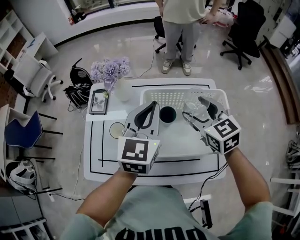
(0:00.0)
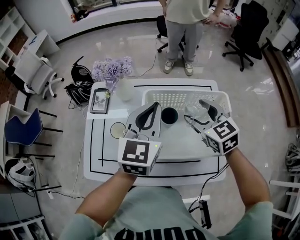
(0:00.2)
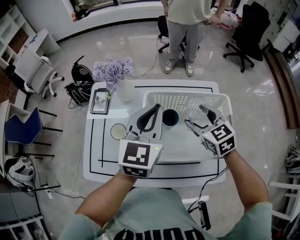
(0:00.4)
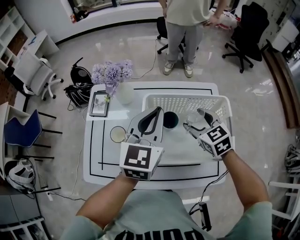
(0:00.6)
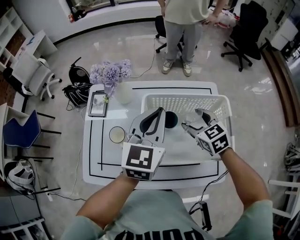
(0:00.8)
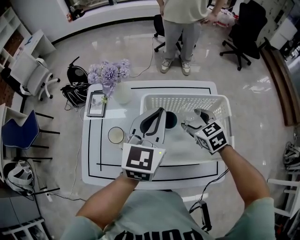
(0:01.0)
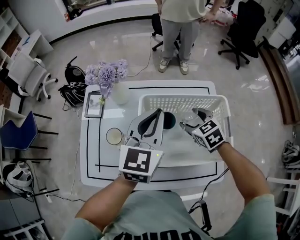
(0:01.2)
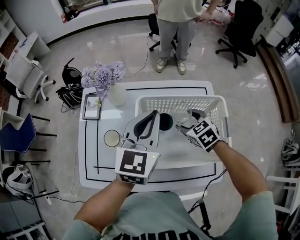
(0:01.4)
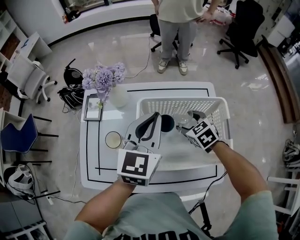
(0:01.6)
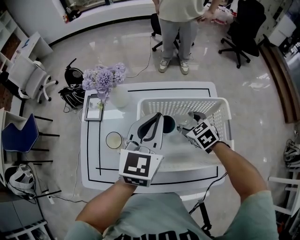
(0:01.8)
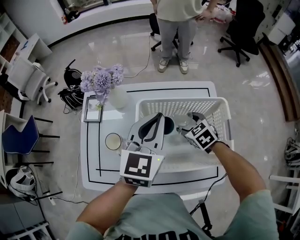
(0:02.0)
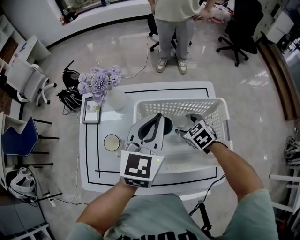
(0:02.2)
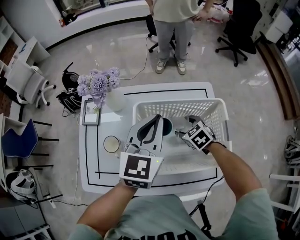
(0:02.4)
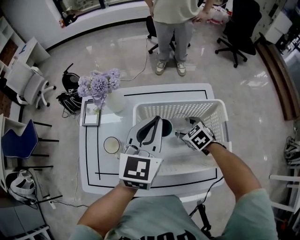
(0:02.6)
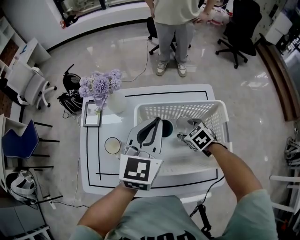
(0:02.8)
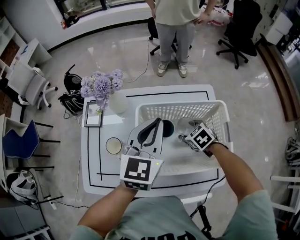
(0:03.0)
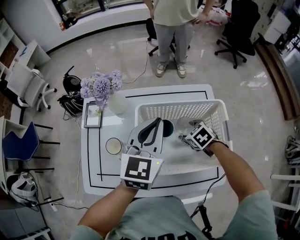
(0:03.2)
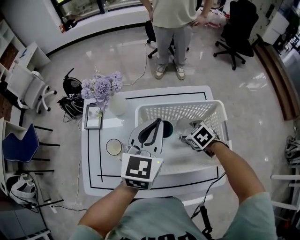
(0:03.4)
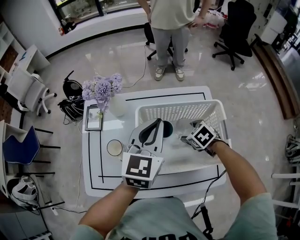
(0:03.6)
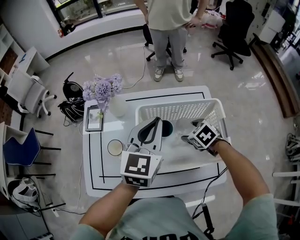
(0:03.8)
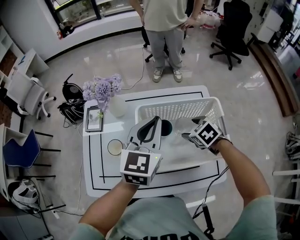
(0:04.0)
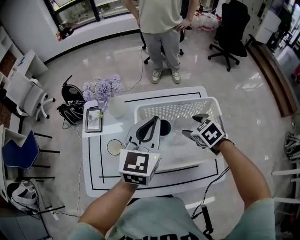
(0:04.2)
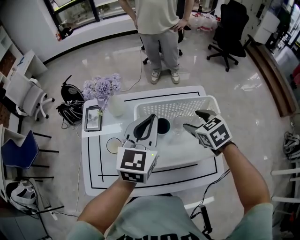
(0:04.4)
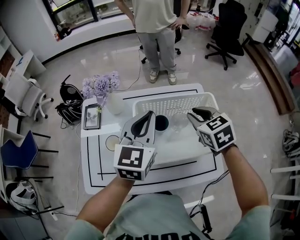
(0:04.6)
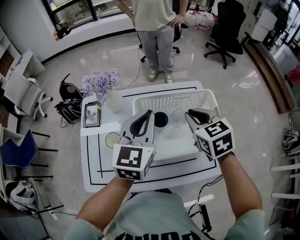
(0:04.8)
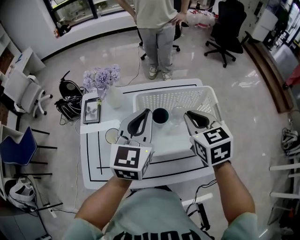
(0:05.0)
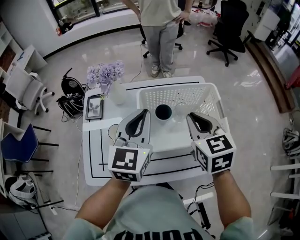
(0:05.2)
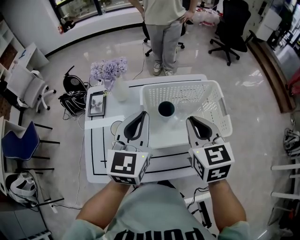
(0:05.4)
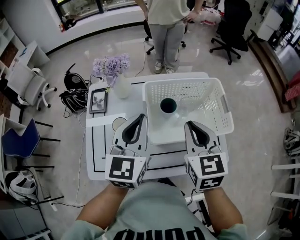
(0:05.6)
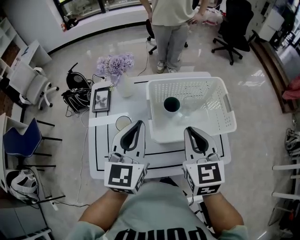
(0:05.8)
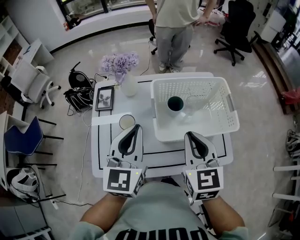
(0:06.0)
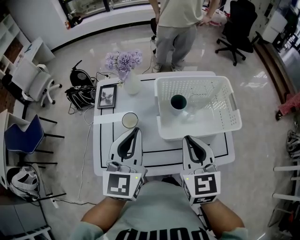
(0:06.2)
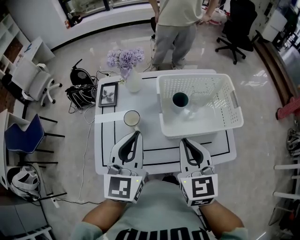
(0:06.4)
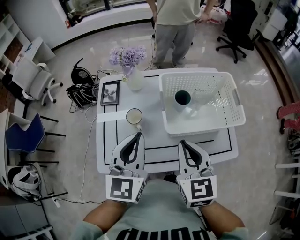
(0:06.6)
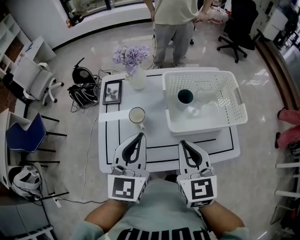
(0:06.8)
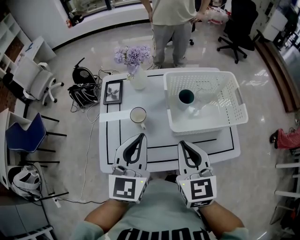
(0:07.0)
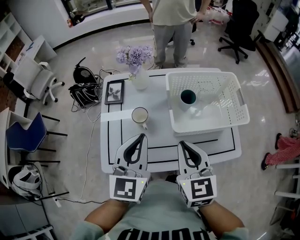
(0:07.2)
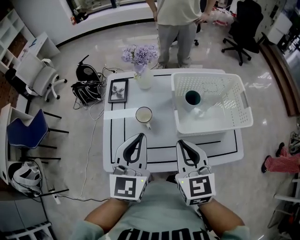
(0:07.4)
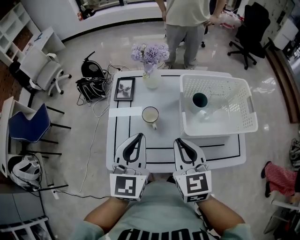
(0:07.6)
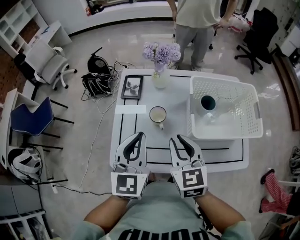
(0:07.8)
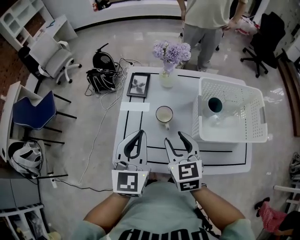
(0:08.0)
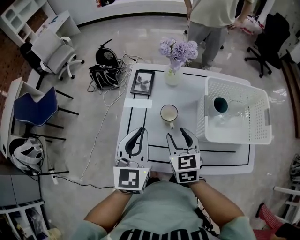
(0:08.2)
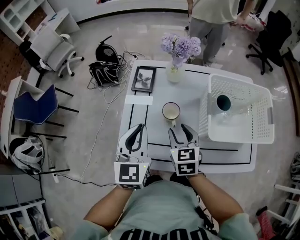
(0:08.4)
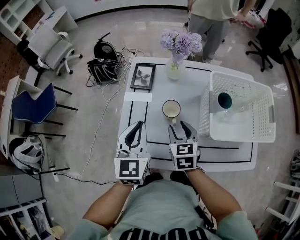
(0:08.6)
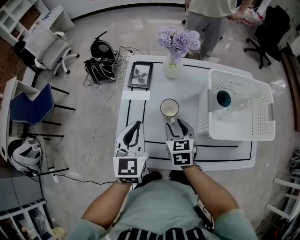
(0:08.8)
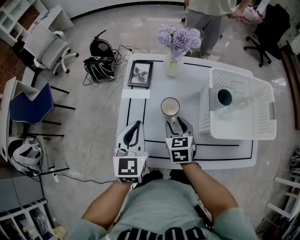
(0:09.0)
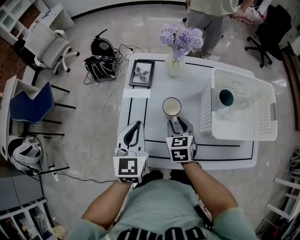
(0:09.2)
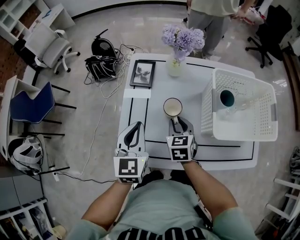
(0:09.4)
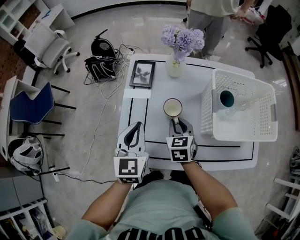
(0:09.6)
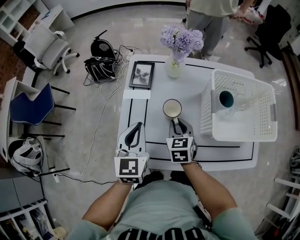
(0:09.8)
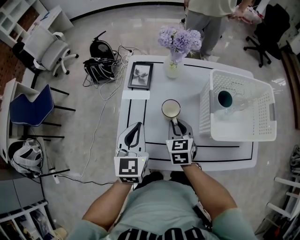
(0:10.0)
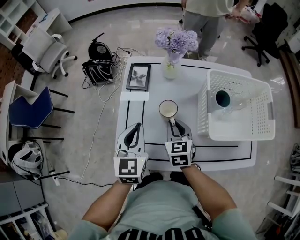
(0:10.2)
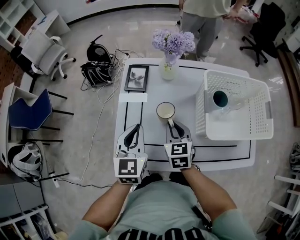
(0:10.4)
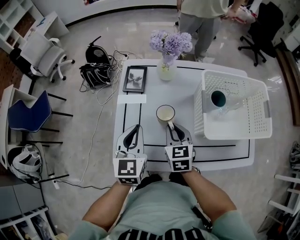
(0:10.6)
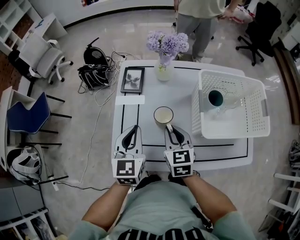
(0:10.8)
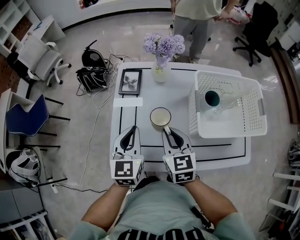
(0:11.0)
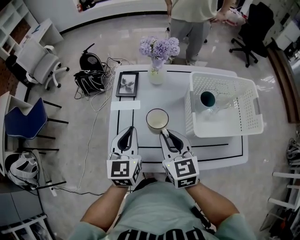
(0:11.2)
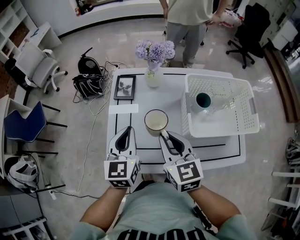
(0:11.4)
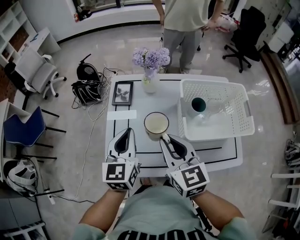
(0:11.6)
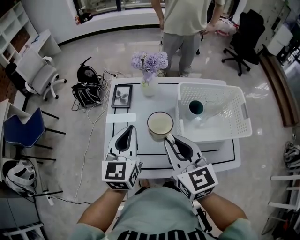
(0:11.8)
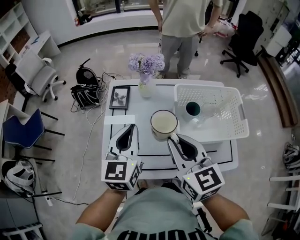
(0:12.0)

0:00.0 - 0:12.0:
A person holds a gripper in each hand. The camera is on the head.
0:00.0 - 0:01.6: The right gripper is displaced downward by approximately 15 cm, and swivels approximately 30 degrees.
0:01.6 - 0:03.0: The right gripper heads downward, covering roughly 5 cm.
0:03.0 - 0:04.4: The right gripper moves upward, roughly 15 cm.
0:04.4 - 0:06.0: The left gripper heads backward and to the left, covering approximately 15 cm. The right gripper travels backward, to the left and upward by about 25 cm, rotates roughly 30 degrees, and closes.
0:06.0 - 0:07.6: The two grippers go approximately 10 cm to the left.
0:07.6 - 0:09.0: The right gripper is displaced downward and forward by approximately 20 cm, and opens up. The left gripper goes some 15 cm downward, to the left and forward.
0:09.0 - 0:10.4: The grippers make only small movements.
0:10.4 - 0:12.0: The right gripper heads upward, covering approximately 20 cm, and rotates approximately 20 degrees, while the left gripper is displaced upward and to the right by some 15 cm.

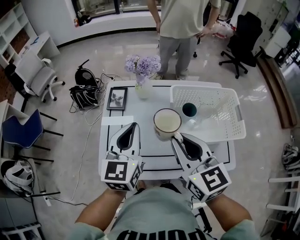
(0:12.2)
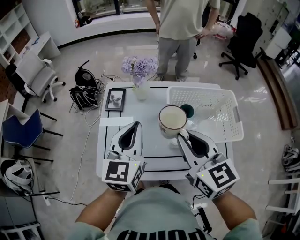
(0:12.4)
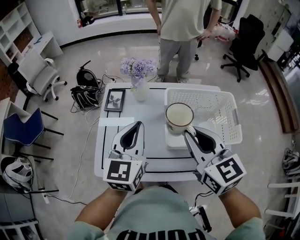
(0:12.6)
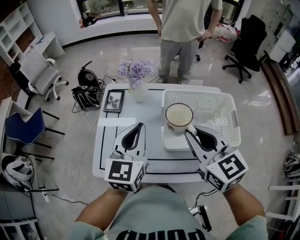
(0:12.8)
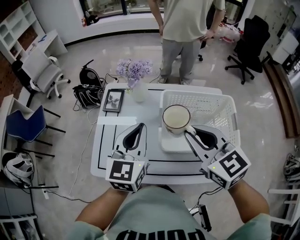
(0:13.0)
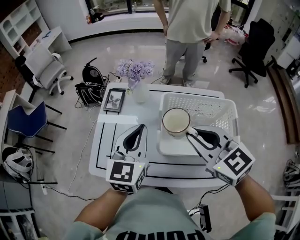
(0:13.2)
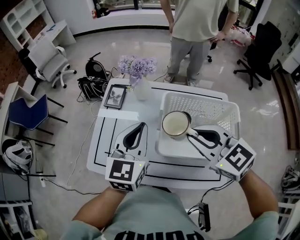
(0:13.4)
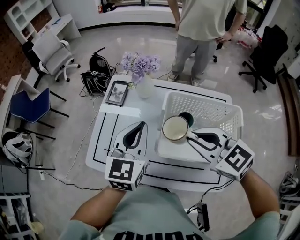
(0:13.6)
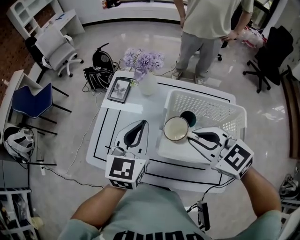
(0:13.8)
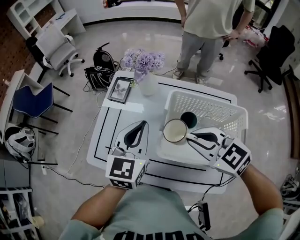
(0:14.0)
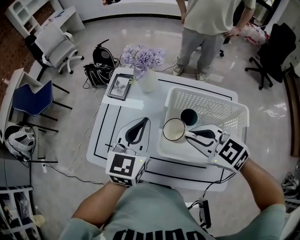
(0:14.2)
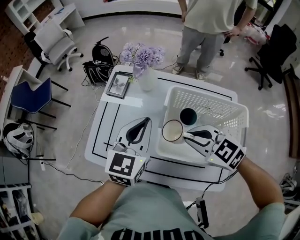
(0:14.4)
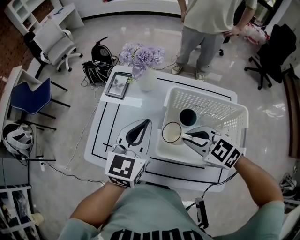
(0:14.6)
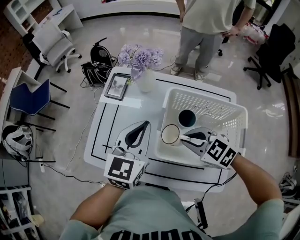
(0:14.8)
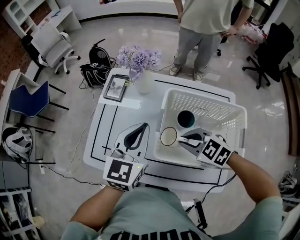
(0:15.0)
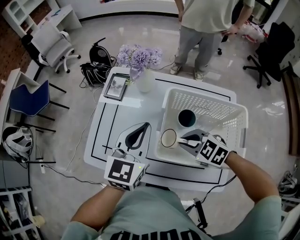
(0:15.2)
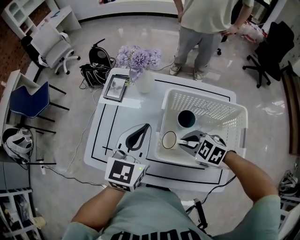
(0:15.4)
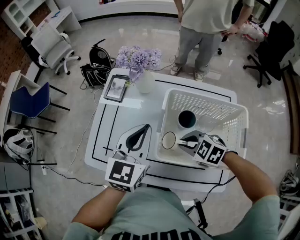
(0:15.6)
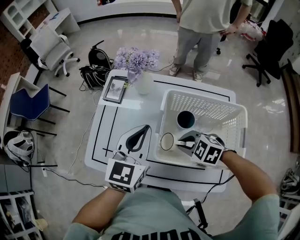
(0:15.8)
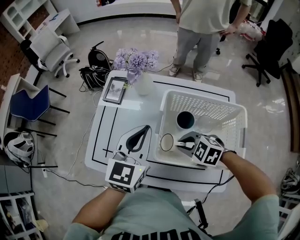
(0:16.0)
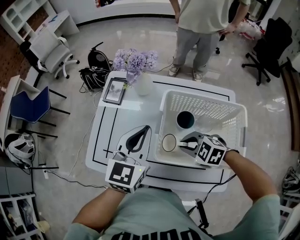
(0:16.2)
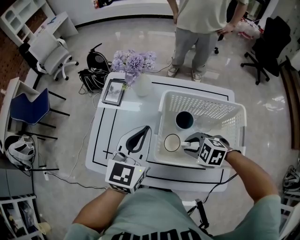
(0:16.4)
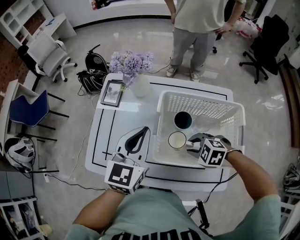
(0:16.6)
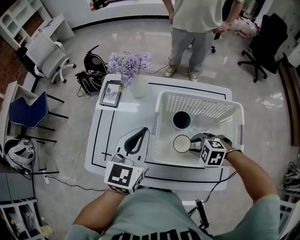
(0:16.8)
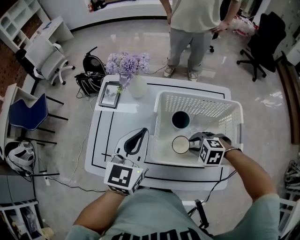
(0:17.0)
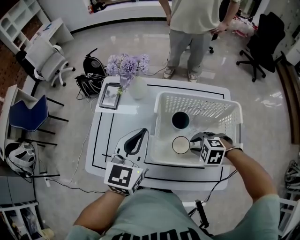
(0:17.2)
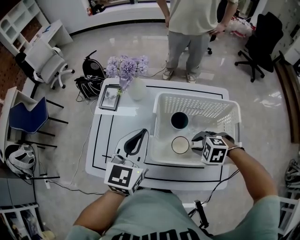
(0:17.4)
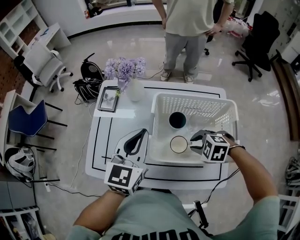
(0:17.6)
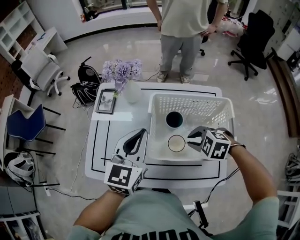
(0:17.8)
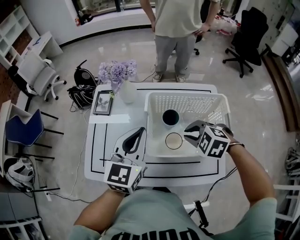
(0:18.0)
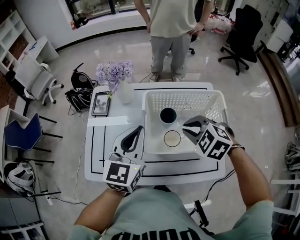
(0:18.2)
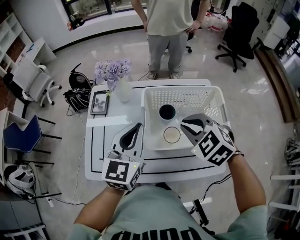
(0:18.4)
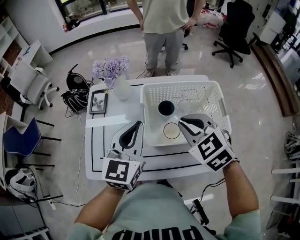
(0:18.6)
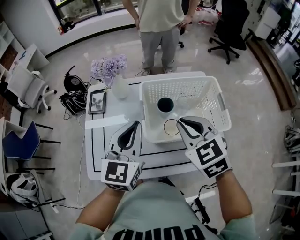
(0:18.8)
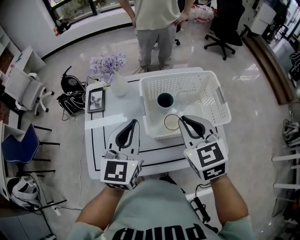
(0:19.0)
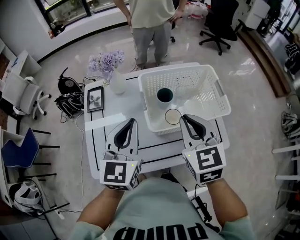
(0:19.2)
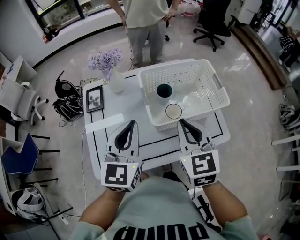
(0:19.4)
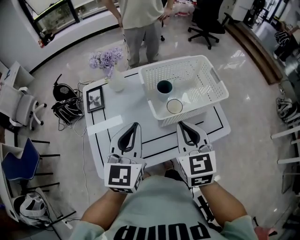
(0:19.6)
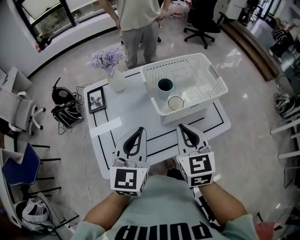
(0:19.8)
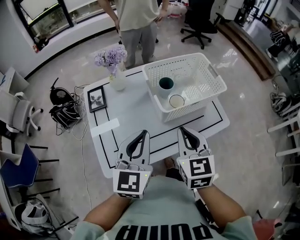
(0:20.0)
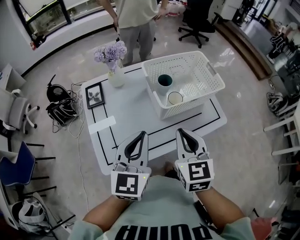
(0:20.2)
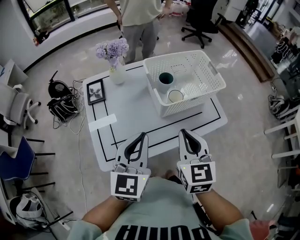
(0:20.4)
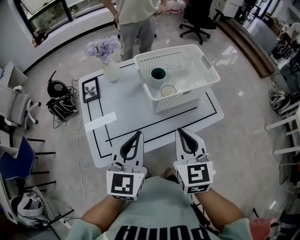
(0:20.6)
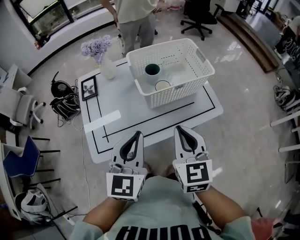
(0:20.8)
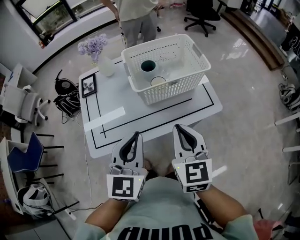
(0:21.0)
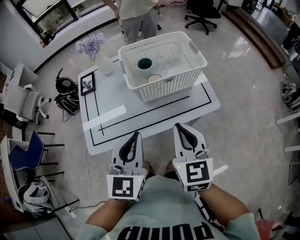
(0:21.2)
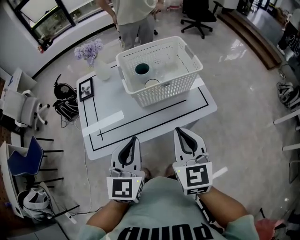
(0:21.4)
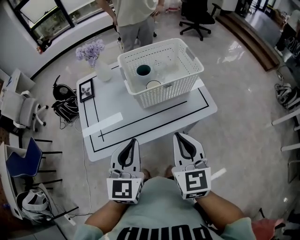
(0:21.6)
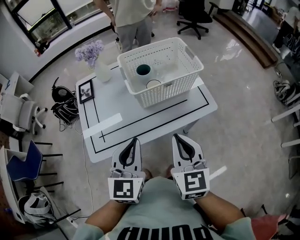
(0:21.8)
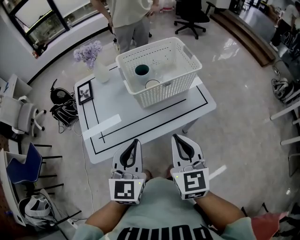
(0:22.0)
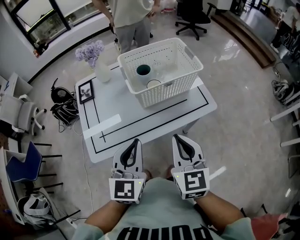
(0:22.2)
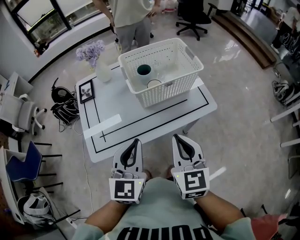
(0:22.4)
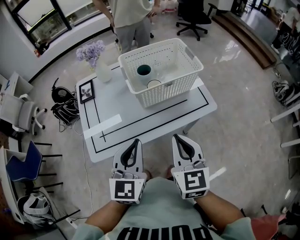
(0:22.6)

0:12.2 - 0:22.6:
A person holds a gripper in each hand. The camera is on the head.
0:12.2 - 0:13.6: The grippers both shift to the right by some 10 cm. The right gripper rotates about 40 degrees.
0:13.6 - 0:15.2: The right gripper travels downward by roughly 15 cm, and changes its angle by some 20 degrees.
0:15.2 - 0:16.6: The right gripper moves downward, about 5 cm.
0:16.6 - 0:18.2: The right gripper goes roughly 15 cm upward, and rotates about 30 degrees.
0:18.2 - 0:19.6: The left gripper shifts by some 10 cm; the right gripper changes place by some 15 cm, and angles its fingers upward, by some 30 degrees.
0:19.6 - 0:21.2: Both grippers move backward and to the right, approximately 15 cm.
0:21.2 - 0:22.6: The grippers make only small movements.

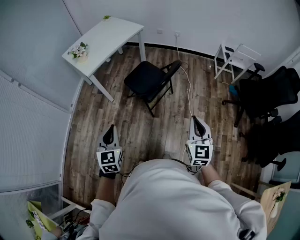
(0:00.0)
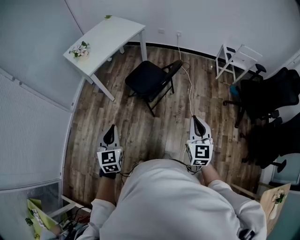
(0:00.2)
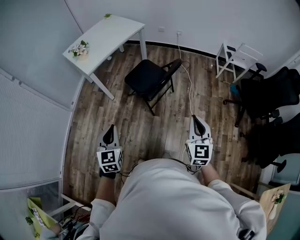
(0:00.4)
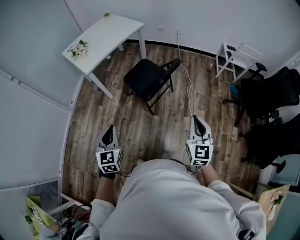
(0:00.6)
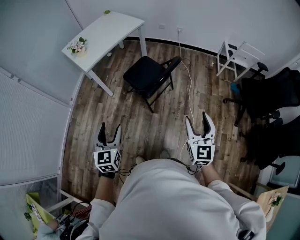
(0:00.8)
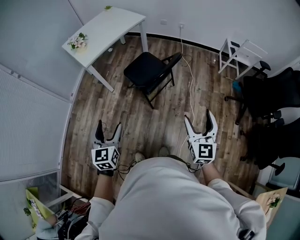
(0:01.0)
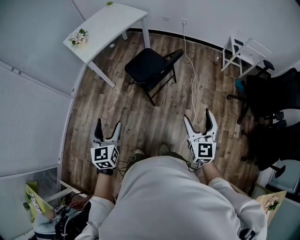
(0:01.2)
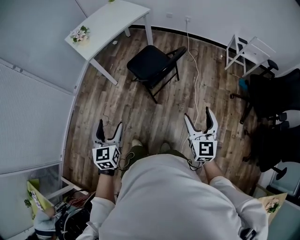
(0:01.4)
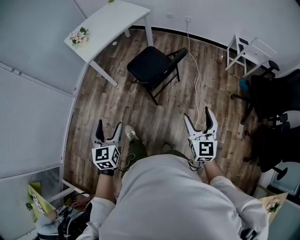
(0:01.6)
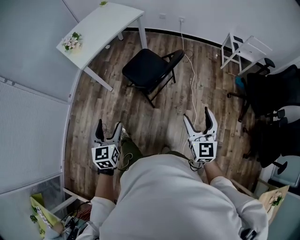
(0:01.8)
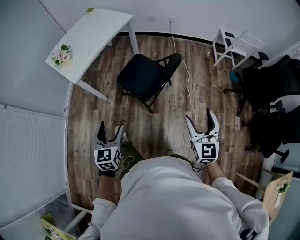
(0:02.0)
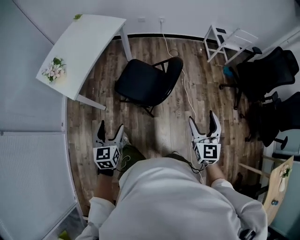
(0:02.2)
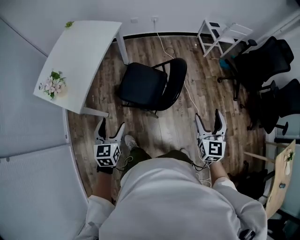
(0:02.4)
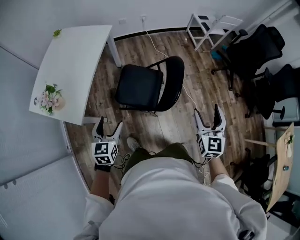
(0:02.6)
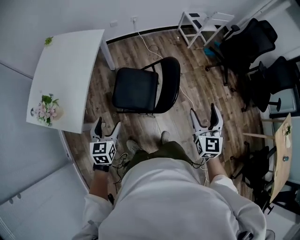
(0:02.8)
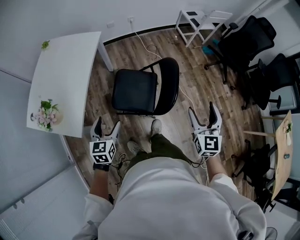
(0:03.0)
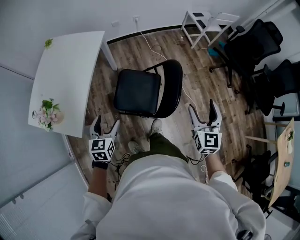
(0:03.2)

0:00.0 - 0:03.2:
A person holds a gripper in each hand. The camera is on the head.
0:00.0 - 0:01.6: The right gripper goes about 5 cm forward, and opens, while the left gripper opens up.
0:01.6 - 0:03.2: The left gripper changes place by some 50 cm, and turns by some 40 degrees. Meanwhile the right gripper changes place by about 30 cm, and rotates about 40 degrees.
